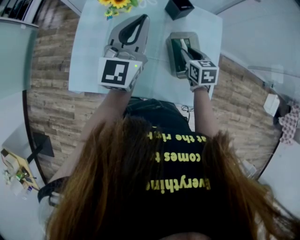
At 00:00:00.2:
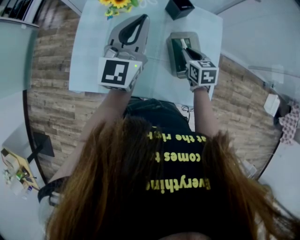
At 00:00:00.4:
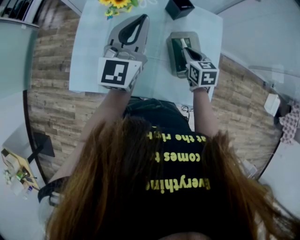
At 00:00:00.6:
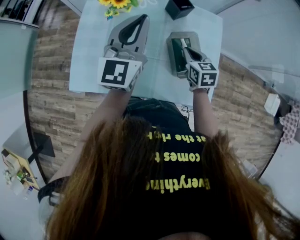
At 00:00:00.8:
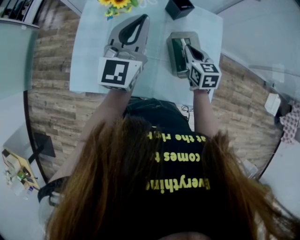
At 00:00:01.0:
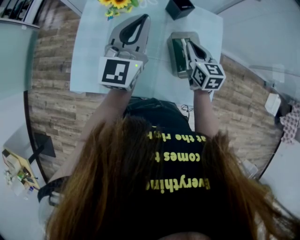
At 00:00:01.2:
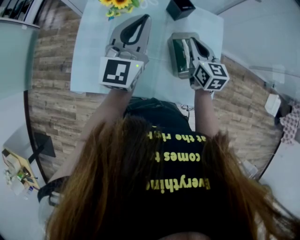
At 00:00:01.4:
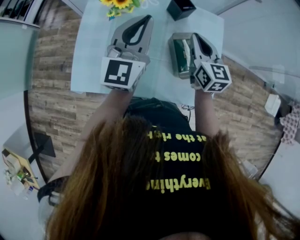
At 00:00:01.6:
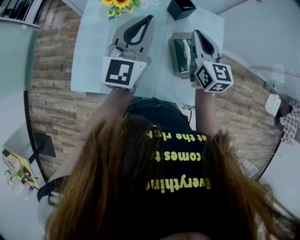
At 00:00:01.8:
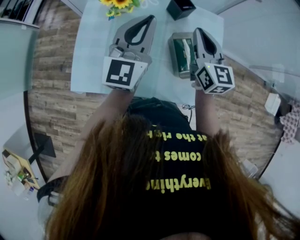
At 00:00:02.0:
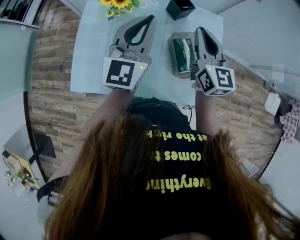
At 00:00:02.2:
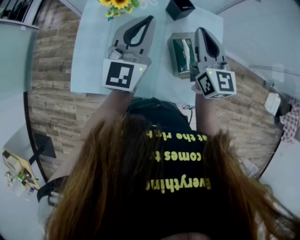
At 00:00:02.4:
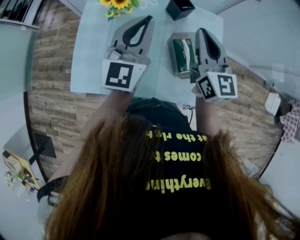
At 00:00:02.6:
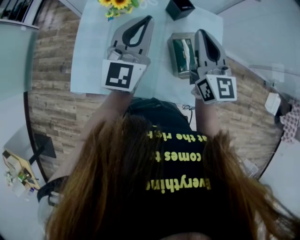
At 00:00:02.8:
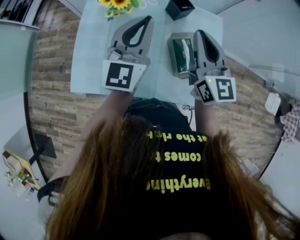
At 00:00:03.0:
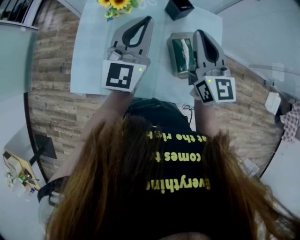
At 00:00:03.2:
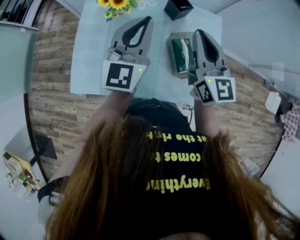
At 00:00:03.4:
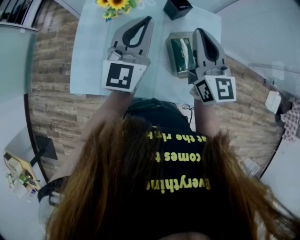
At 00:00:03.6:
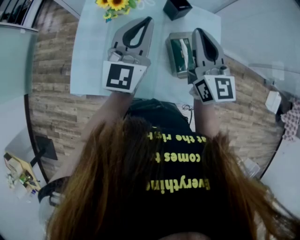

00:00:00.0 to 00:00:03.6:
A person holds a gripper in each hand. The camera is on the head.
00:00:00.0 to 00:00:01.8: The right gripper heads upward, covering roughly 20 cm, and angles its fingers upward, by approximately 40 degrees.
00:00:01.8 to 00:00:03.6: The right gripper goes about 5 cm upward.

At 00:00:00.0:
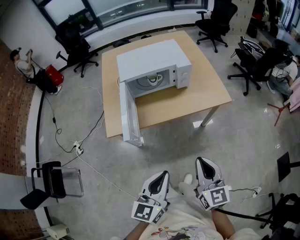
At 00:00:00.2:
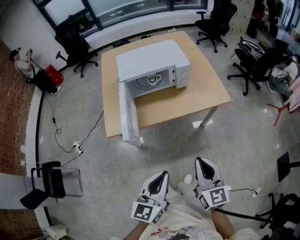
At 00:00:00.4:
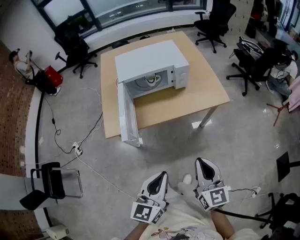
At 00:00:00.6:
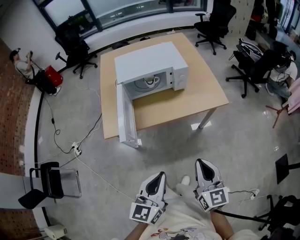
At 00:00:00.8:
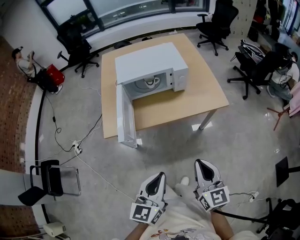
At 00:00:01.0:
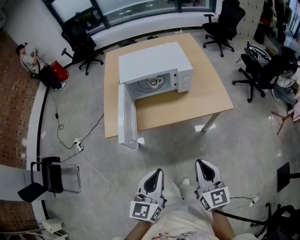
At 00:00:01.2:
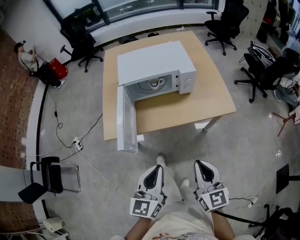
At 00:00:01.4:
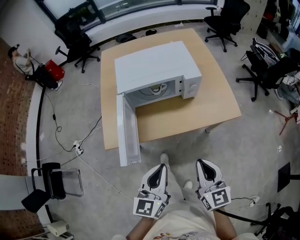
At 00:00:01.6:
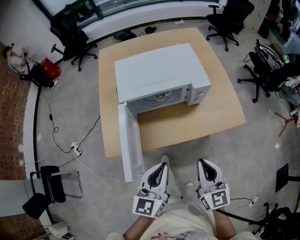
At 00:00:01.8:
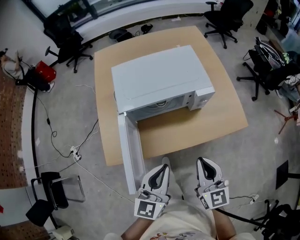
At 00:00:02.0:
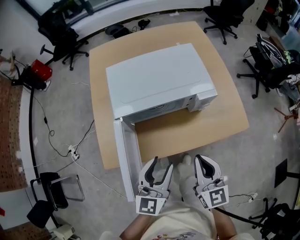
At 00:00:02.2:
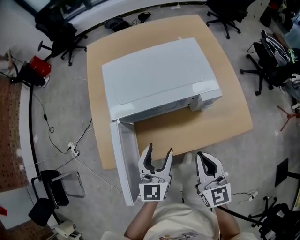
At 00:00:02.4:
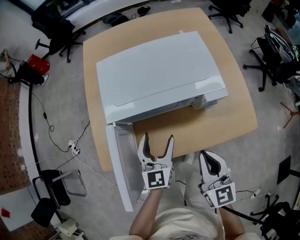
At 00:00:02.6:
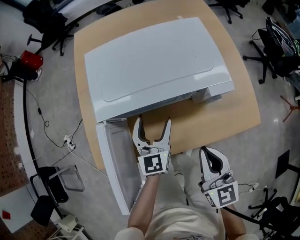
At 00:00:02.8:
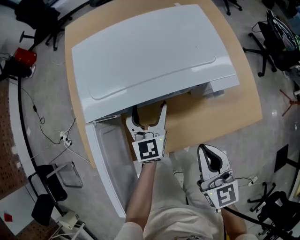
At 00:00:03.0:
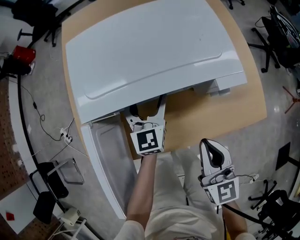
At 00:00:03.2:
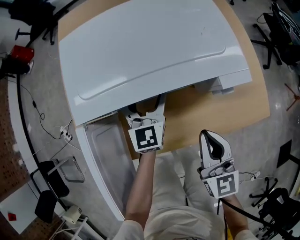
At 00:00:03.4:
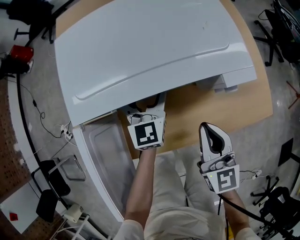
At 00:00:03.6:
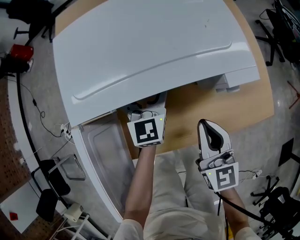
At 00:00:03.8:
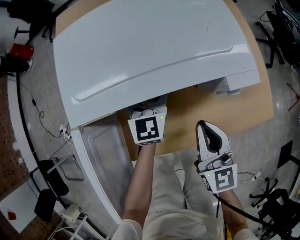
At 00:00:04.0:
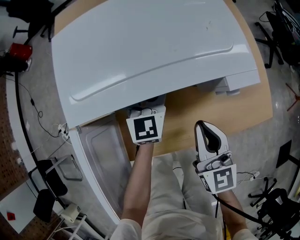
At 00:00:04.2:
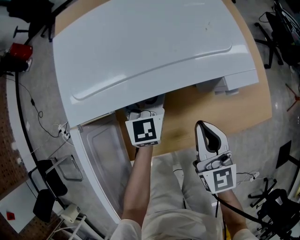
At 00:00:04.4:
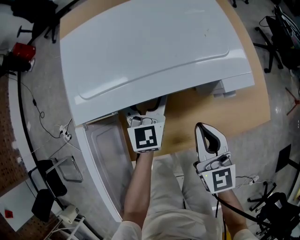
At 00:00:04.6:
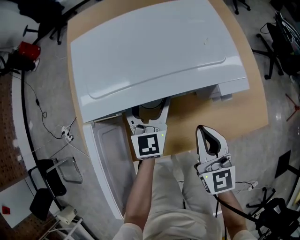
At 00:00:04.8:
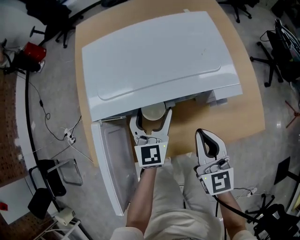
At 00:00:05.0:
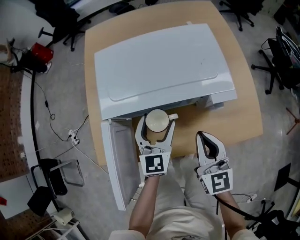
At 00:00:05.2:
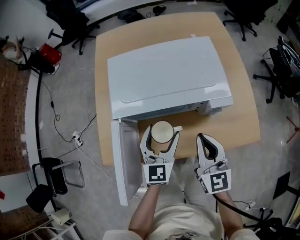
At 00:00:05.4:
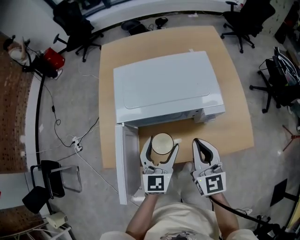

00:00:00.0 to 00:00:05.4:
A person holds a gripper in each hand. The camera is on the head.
00:00:00.0 to 00:00:01.4: Both grippers travel together forward, roughly 15 cm.
00:00:01.4 to 00:00:02.8: The right gripper goes approximately 25 cm forward and downward; the left gripper shifts some 40 cm forward and downward, and opens its fingers.
00:00:02.8 to 00:00:04.0: The left gripper moves forward, some 5 cm. The right gripper is displaced downward and forward by approximately 10 cm.
00:00:04.0 to 00:00:05.4: The left gripper shifts roughly 25 cm backward and upward, while the right gripper moves upward, roughly 15 cm.

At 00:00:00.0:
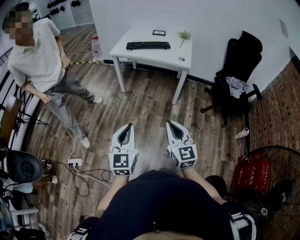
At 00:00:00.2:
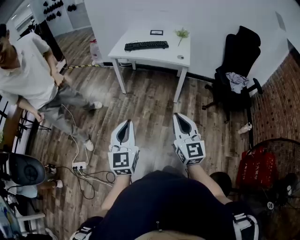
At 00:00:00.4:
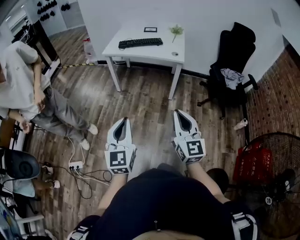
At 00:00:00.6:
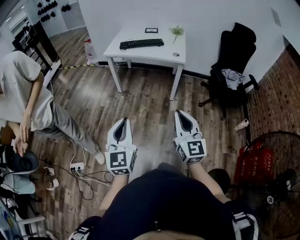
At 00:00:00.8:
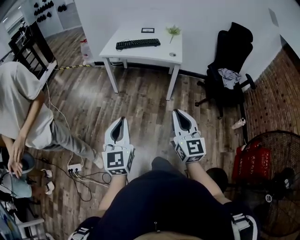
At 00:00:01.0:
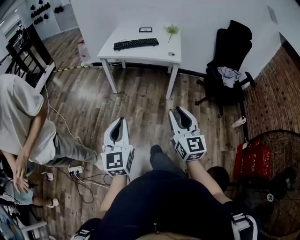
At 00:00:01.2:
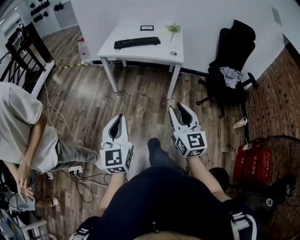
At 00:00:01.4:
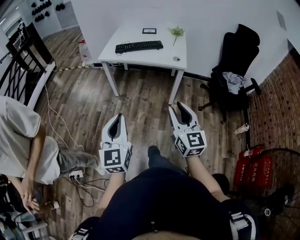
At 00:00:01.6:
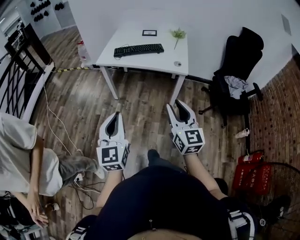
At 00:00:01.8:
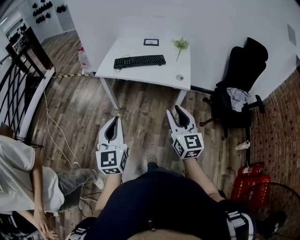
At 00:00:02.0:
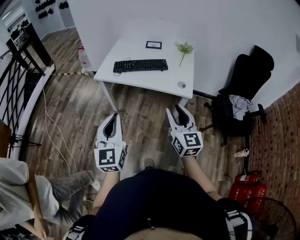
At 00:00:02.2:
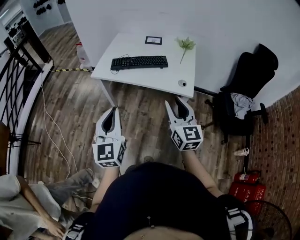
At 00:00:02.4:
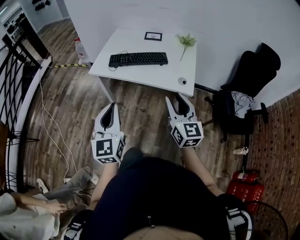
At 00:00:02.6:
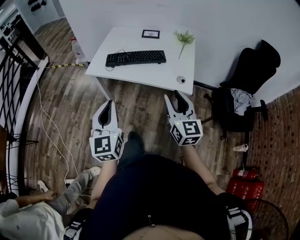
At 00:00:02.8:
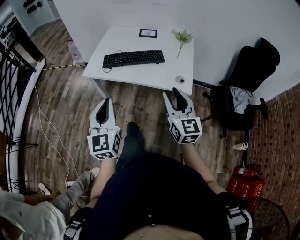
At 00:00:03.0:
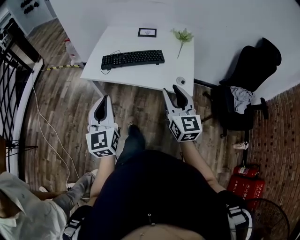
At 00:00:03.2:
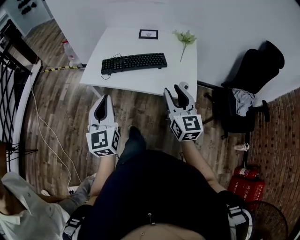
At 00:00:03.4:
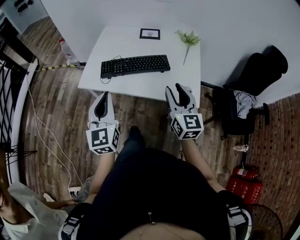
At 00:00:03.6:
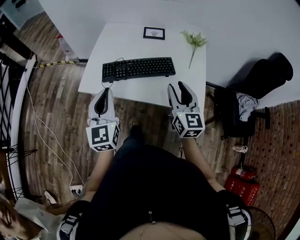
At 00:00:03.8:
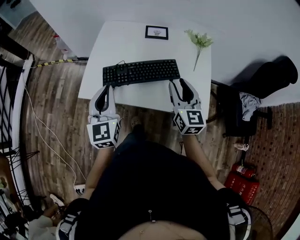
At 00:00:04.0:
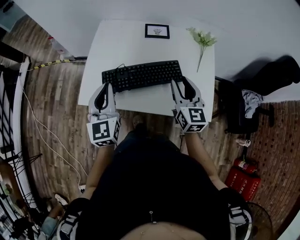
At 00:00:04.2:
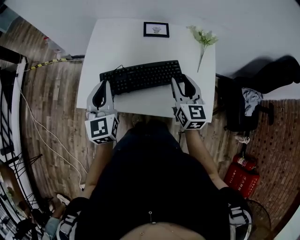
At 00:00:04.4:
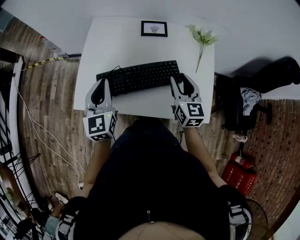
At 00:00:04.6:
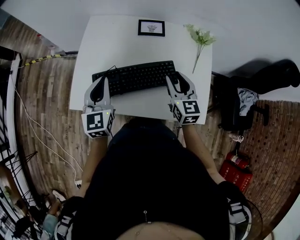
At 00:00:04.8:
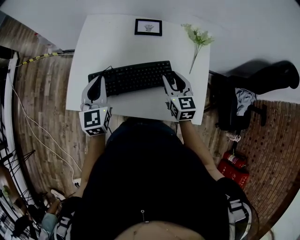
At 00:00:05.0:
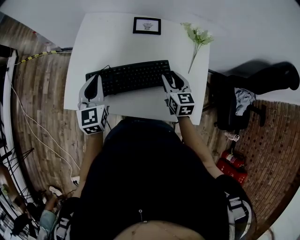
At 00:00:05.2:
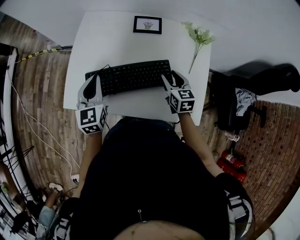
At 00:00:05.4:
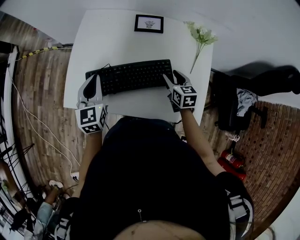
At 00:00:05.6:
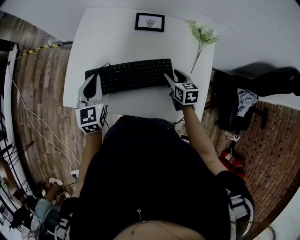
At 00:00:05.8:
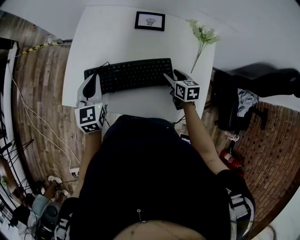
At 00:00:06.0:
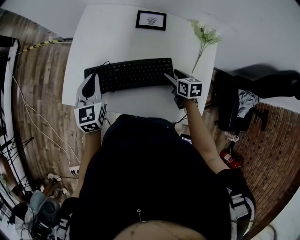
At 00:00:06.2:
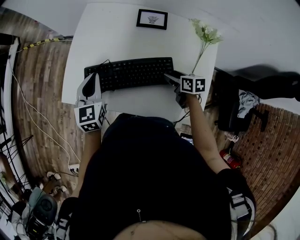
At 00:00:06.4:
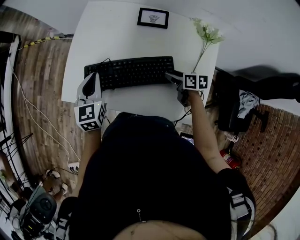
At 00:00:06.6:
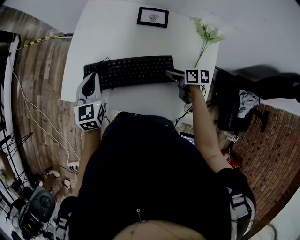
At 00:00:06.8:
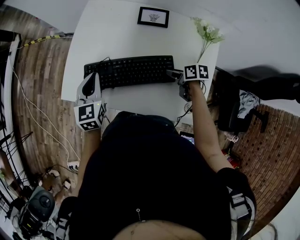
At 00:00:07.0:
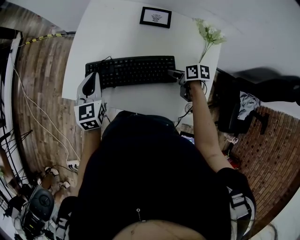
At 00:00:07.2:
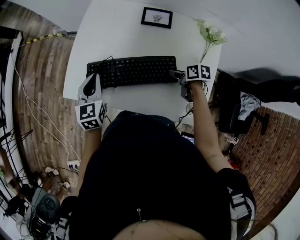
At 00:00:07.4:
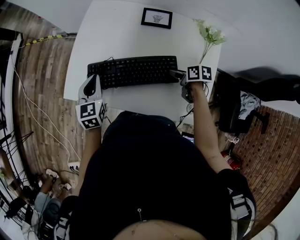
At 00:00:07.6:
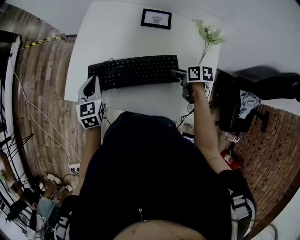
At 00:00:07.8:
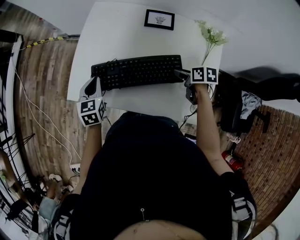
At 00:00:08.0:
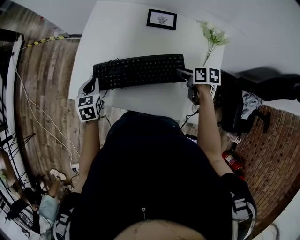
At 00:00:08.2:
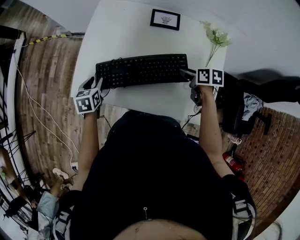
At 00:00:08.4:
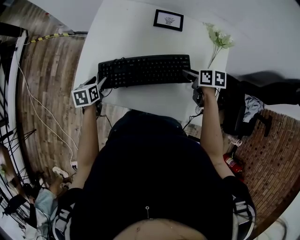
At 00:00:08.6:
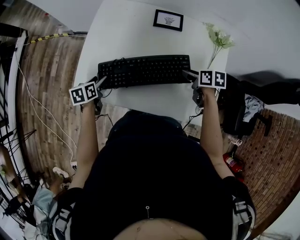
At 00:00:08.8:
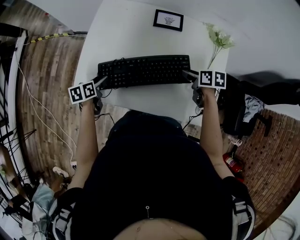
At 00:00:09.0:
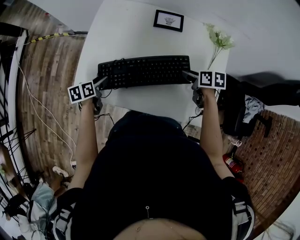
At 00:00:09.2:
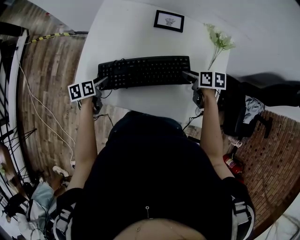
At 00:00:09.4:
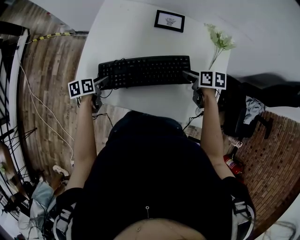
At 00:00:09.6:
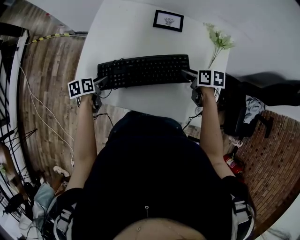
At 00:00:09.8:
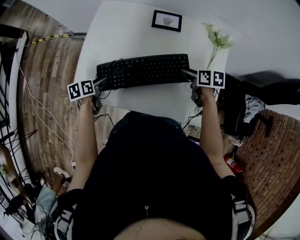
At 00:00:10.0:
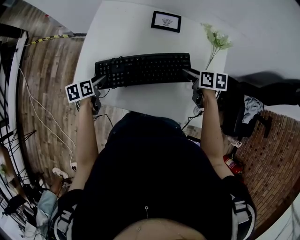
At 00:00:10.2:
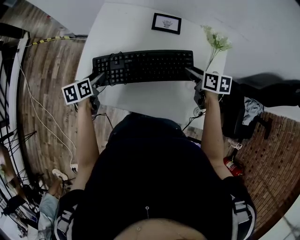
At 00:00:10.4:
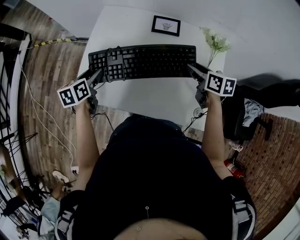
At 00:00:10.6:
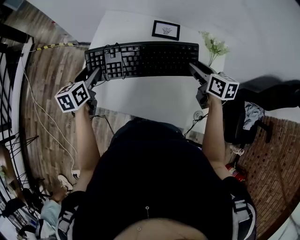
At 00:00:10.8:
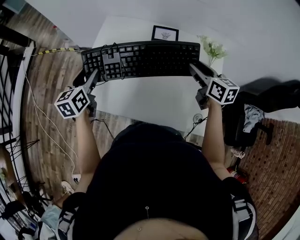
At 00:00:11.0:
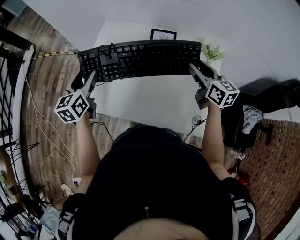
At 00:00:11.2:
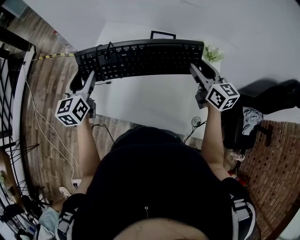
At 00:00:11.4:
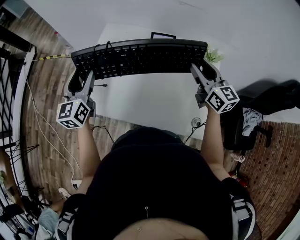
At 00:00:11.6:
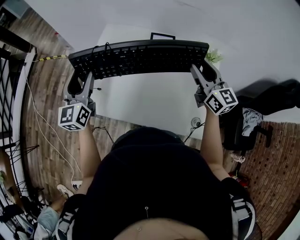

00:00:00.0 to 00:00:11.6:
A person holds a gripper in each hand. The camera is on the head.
00:00:00.0 to 00:00:01.4: The grippers both shift forward by roughly 15 cm. The right gripper opens up.
00:00:01.4 to 00:00:02.8: The two grippers go roughly 35 cm forward.
00:00:02.8 to 00:00:04.4: Both grippers move forward, approximately 40 cm.
00:00:04.4 to 00:00:05.8: The right gripper moves downward, roughly 15 cm, and rotates about 30 degrees. Meanwhile the left gripper heads downward, covering about 5 cm.
00:00:05.8 to 00:00:07.2: The right gripper swivels about 30 degrees.
00:00:07.2 to 00:00:08.8: The right gripper goes roughly 5 cm upward. Meanwhile the left gripper goes approximately 15 cm downward and to the left, changes its angle by some 40 degrees, and opens up.
00:00:08.8 to 00:00:10.2: The grippers both shift upward by some 5 cm.
00:00:10.2 to 00:00:11.6: The two grippers go about 20 cm upward. The right gripper tips its fingers upward by about 40 degrees; the left gripper angles its fingers upward, by some 40 degrees.

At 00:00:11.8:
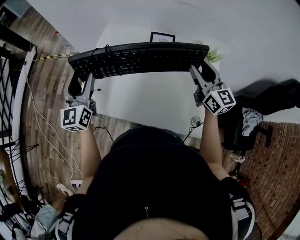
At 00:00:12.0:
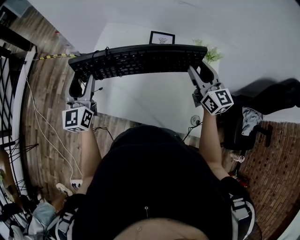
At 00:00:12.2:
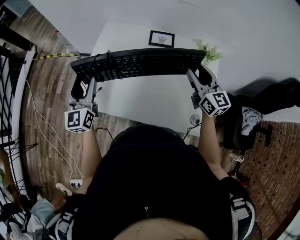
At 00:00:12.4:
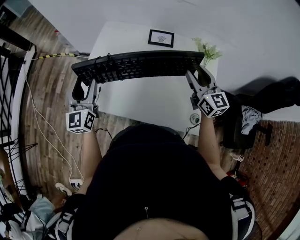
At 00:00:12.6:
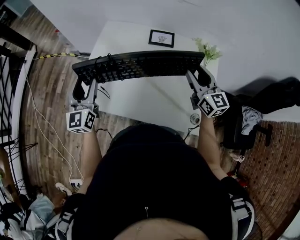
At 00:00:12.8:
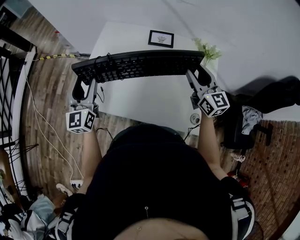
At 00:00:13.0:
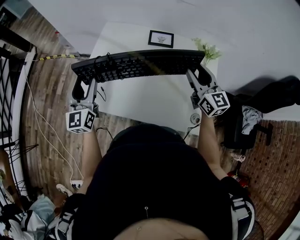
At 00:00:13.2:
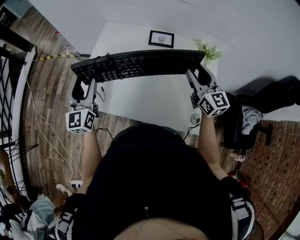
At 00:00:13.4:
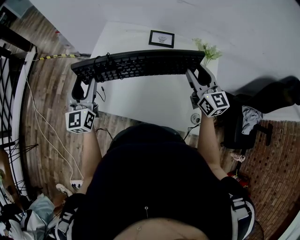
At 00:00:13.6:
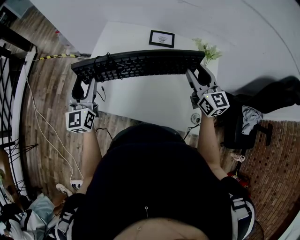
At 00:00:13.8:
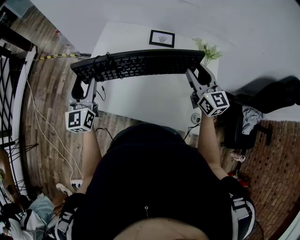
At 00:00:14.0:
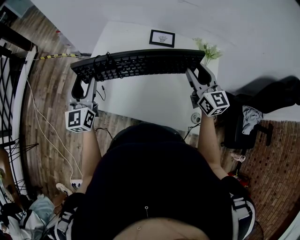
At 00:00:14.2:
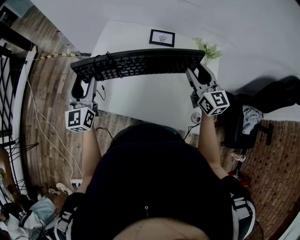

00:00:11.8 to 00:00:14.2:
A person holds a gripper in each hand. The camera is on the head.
00:00:11.8 to 00:00:13.0: The grippers make only small movements.
00:00:13.0 to 00:00:14.2: The two grippers keep their place.
